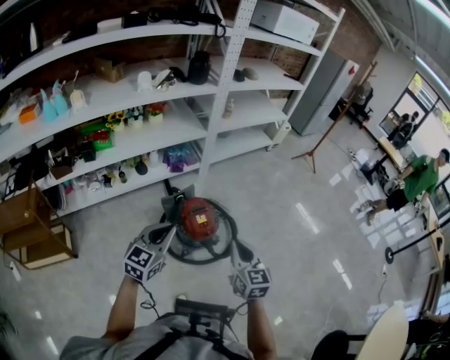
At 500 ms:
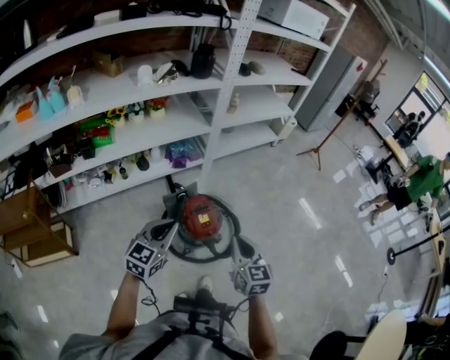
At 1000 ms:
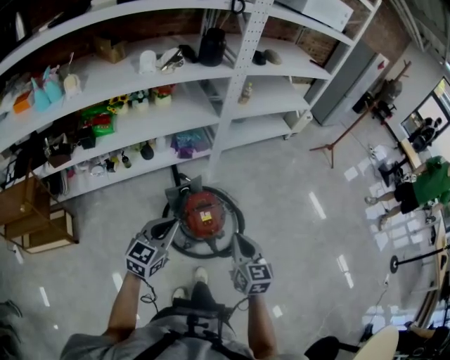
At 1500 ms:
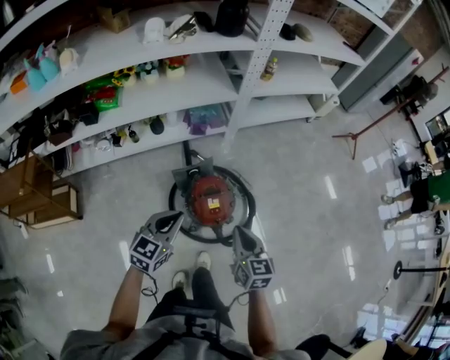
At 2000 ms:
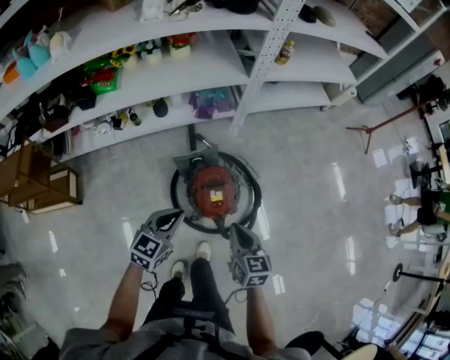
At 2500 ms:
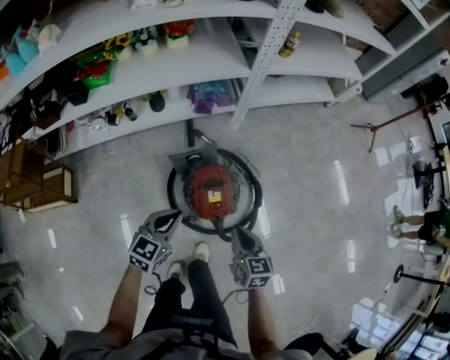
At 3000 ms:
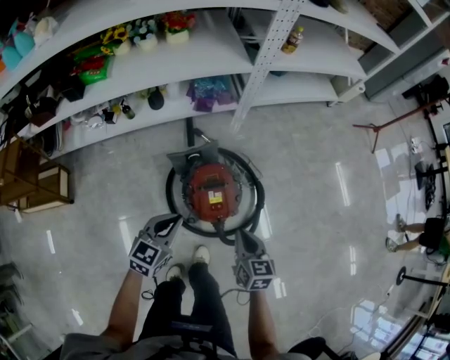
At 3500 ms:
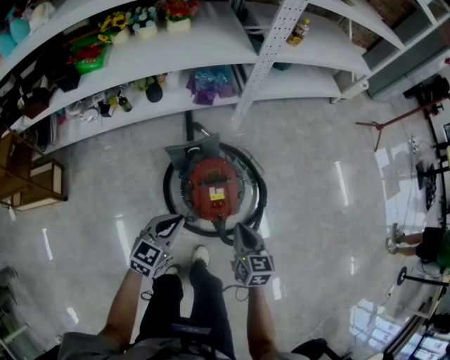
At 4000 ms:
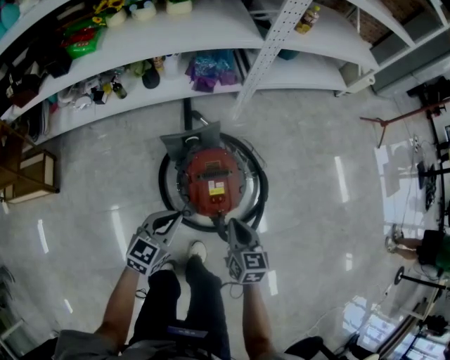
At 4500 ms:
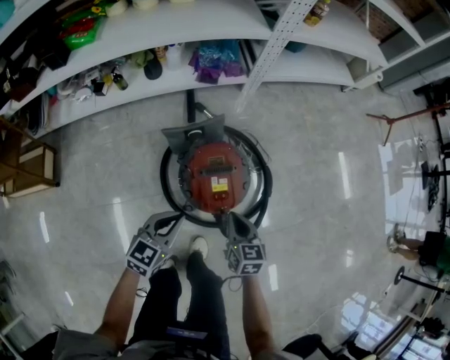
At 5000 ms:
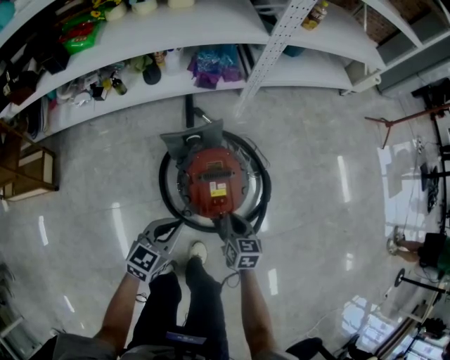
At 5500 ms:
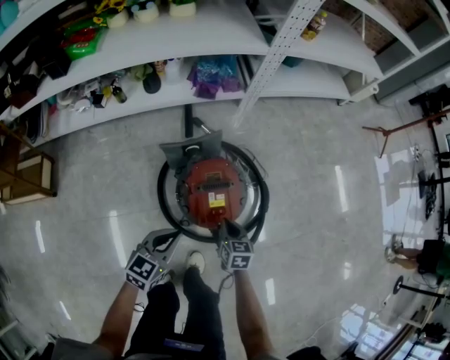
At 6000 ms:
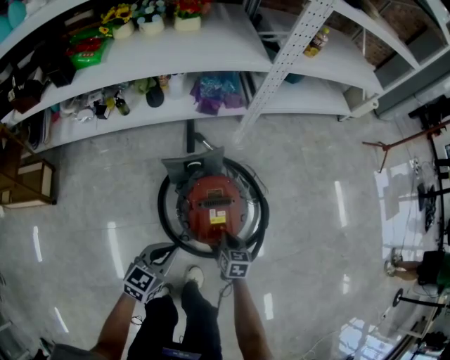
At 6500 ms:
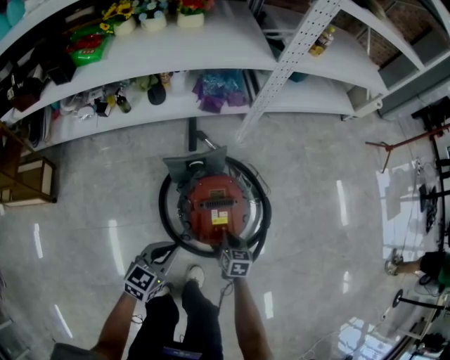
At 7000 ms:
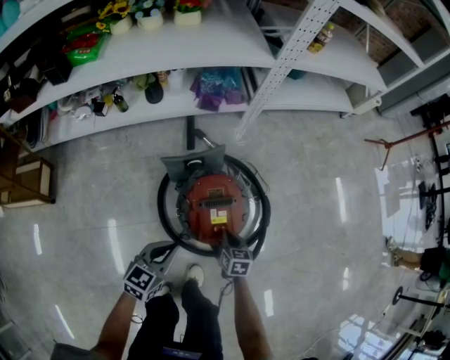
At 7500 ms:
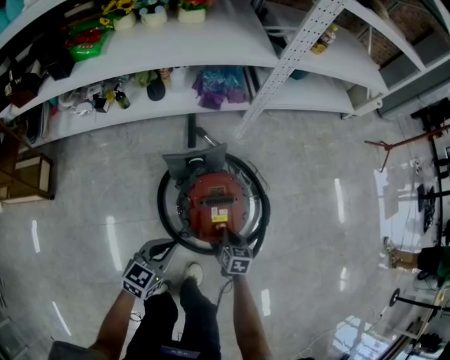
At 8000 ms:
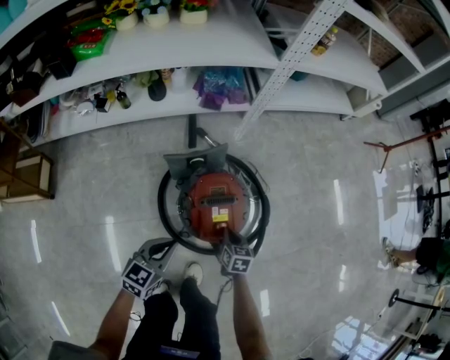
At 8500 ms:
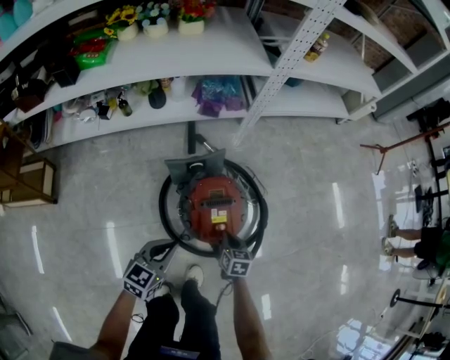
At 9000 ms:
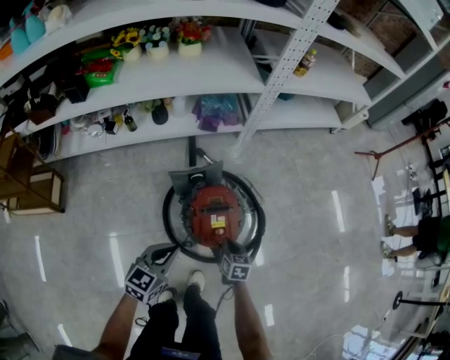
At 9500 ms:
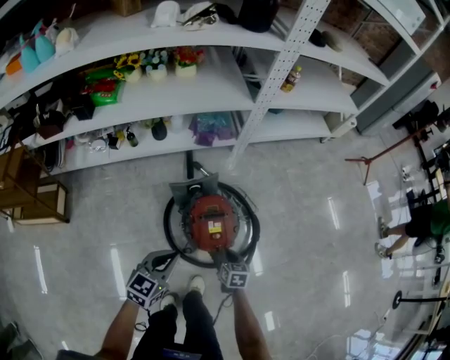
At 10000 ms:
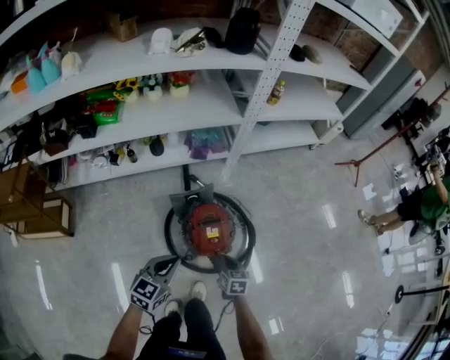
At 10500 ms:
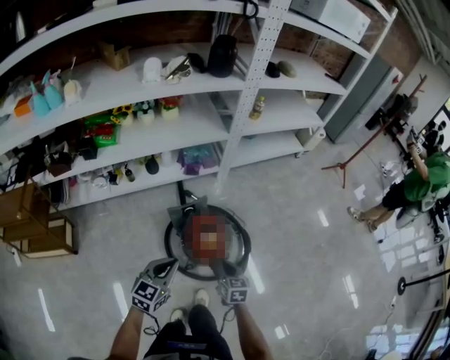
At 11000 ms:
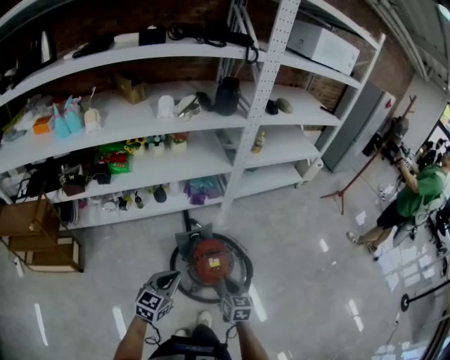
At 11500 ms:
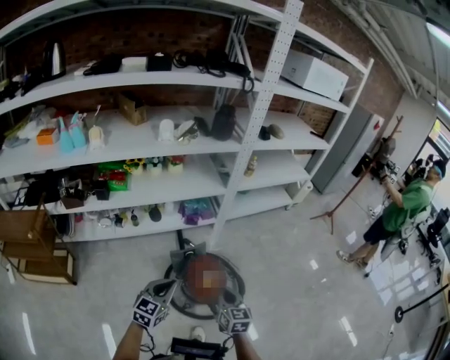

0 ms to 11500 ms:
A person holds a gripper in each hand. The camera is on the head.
0 ms to 2000 ms: The grippers both shift forward and downward by about 25 cm. The right gripper changes its angle by some 20 degrees.
2000 ms to 4000 ms: The grippers both shift downward by about 25 cm.
4000 ms to 6000 ms: The right gripper travels downward by about 15 cm.
6000 ms to 7500 ms: The grippers stay close to where they were, moving slightly.
7500 ms to 9500 ms: The two grippers go approximately 15 cm upward.
9500 ms to 11500 ms: The left gripper heads upward, covering approximately 20 cm; the right gripper moves upward, roughly 40 cm, and swivels roughly 30 degrees.

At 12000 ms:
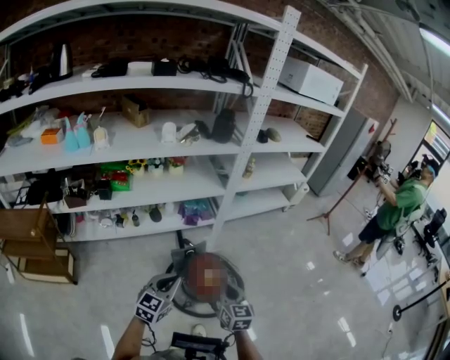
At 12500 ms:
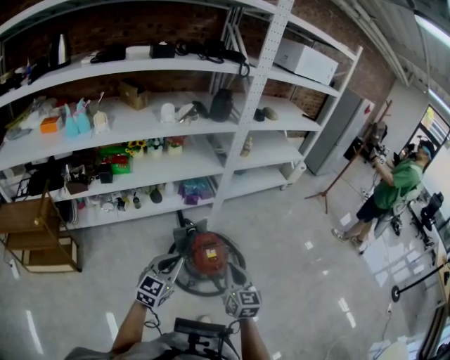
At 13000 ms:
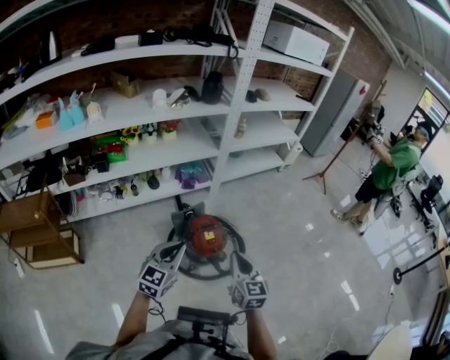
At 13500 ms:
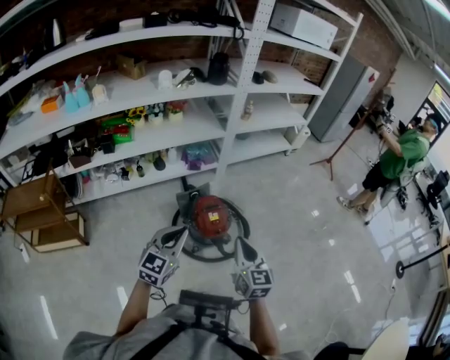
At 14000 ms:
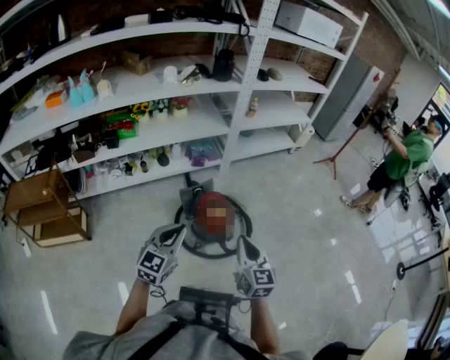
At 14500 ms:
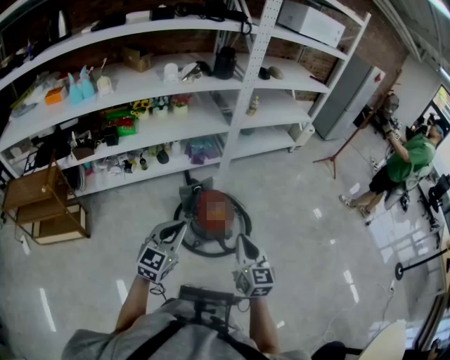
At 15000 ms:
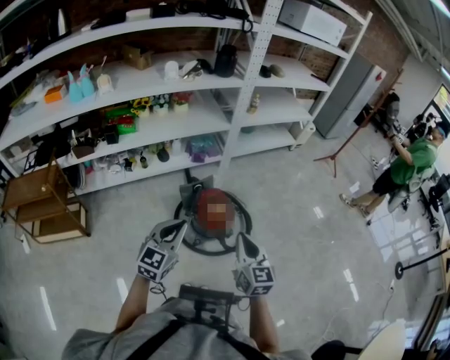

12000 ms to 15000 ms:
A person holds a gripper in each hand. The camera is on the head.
12000 ms to 13500 ms: The left gripper shifts roughly 10 cm backward. The right gripper moves backward and to the right, some 15 cm.
13500 ms to 15000 ms: The grippers make only small movements.

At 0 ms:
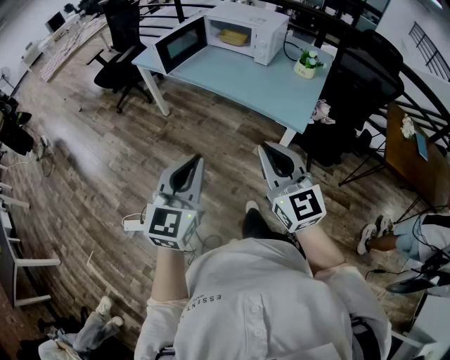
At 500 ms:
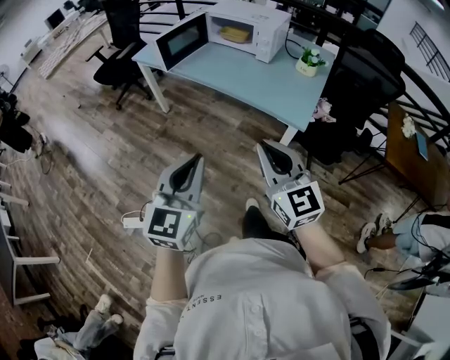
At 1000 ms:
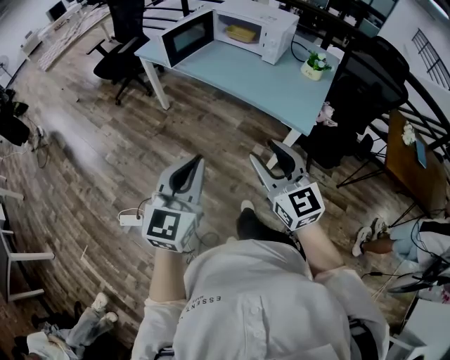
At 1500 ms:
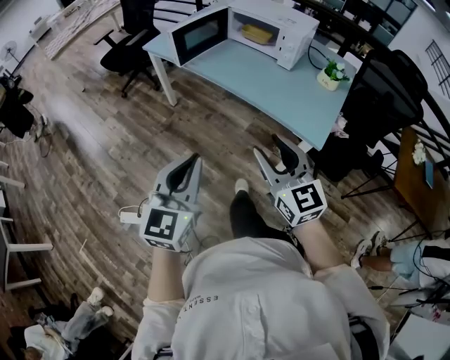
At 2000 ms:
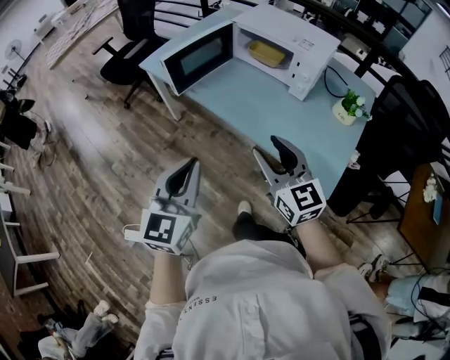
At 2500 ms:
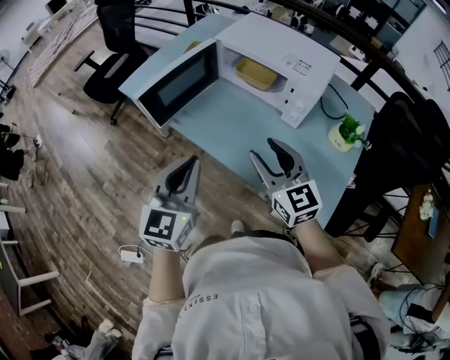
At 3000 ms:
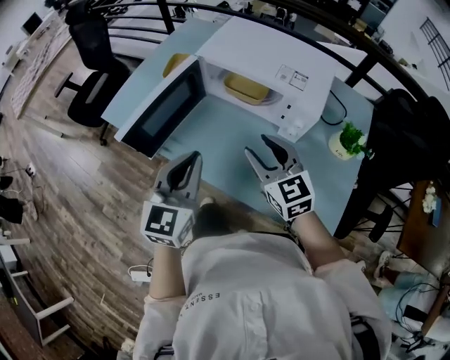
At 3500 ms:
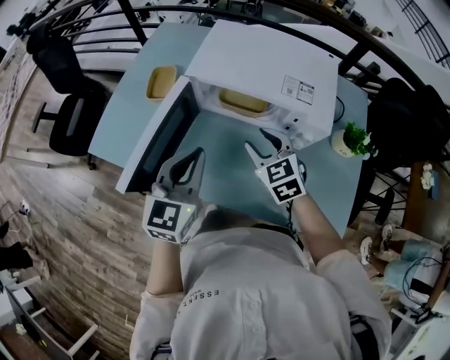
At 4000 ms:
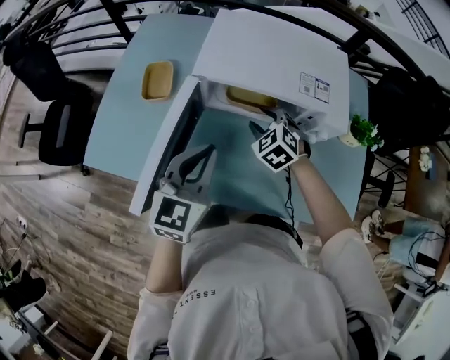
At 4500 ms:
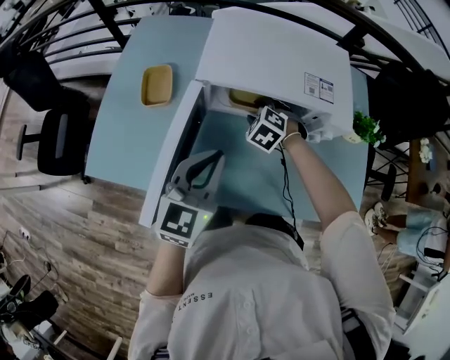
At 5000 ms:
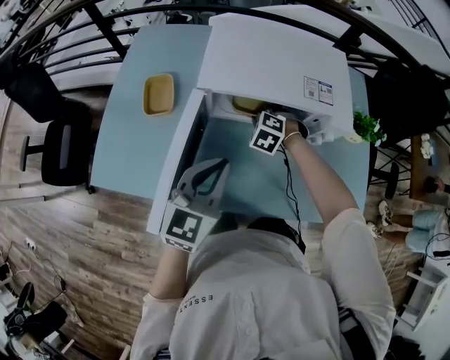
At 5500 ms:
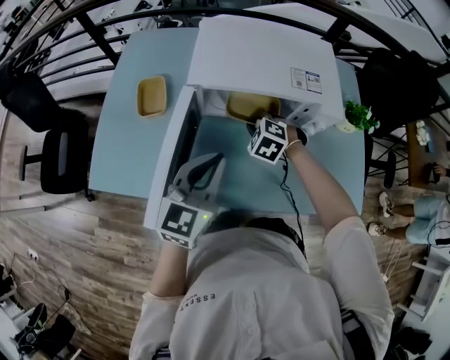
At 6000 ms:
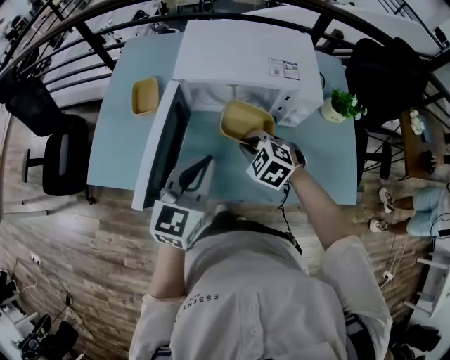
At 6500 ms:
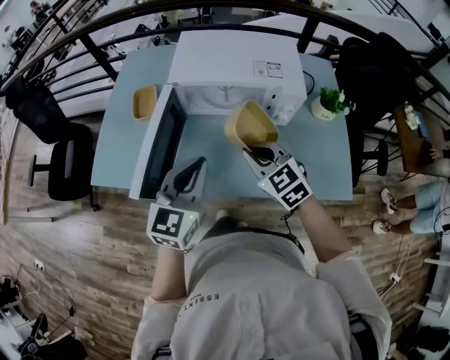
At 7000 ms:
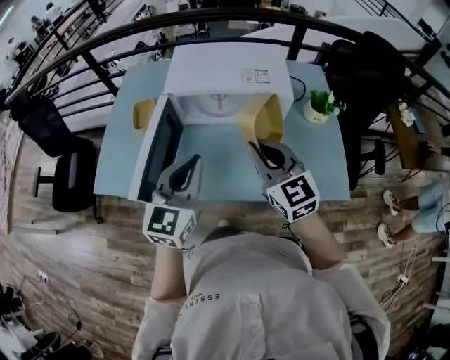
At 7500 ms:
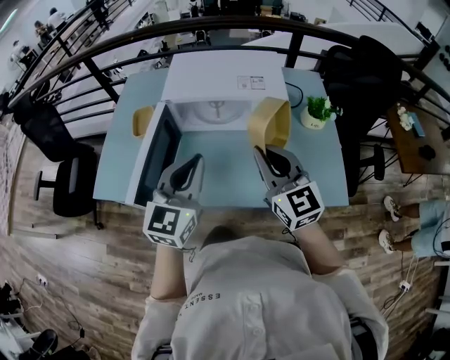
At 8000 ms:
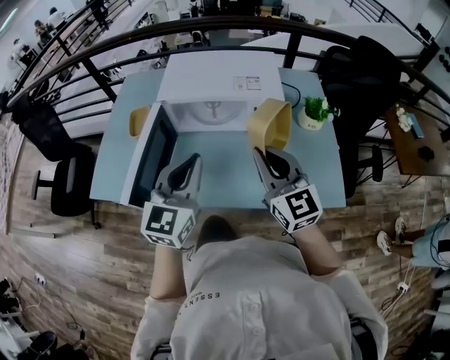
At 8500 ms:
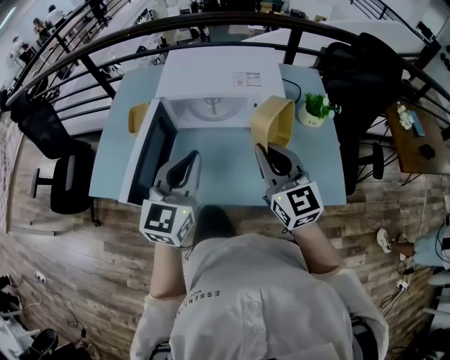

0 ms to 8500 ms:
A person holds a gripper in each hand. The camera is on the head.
0 ms to 2000 ms: The grippers both shift forward by about 30 cm. The right gripper opens.
2000 ms to 4000 ms: The pair of grippers is taken approximately 50 cm. The left gripper swivels some 30 degrees. The right gripper tilts its fingers some 40 degrees downward.
4000 ms to 6500 ms: The right gripper heads backward and upward, covering some 20 cm, swivels approximately 30 degrees, and closes up. The left gripper heads backward, covering roughly 10 cm.
6500 ms to 8500 ms: The right gripper travels upward and to the right by some 15 cm, and changes its angle by approximately 30 degrees; the left gripper changes place by about 5 cm.

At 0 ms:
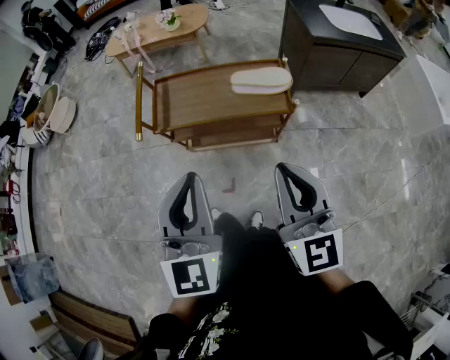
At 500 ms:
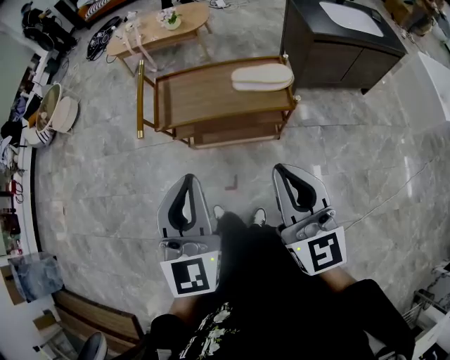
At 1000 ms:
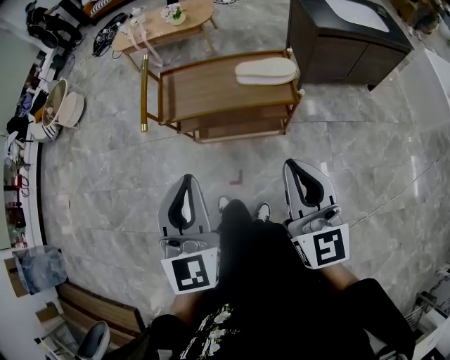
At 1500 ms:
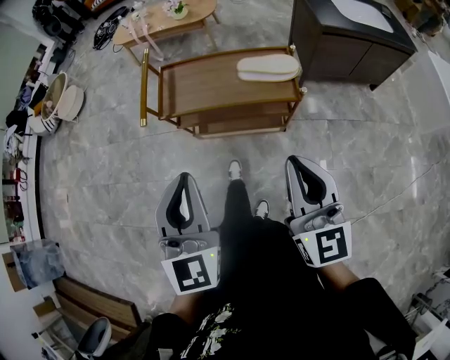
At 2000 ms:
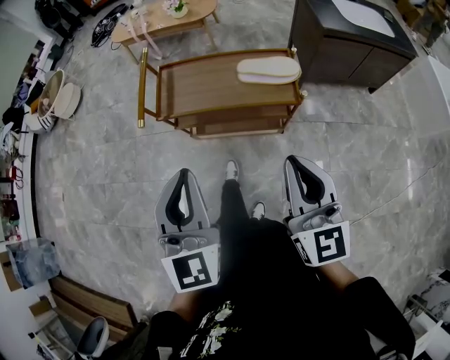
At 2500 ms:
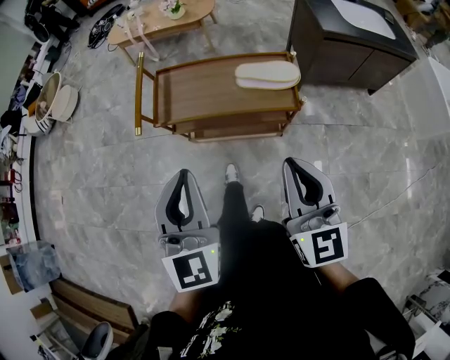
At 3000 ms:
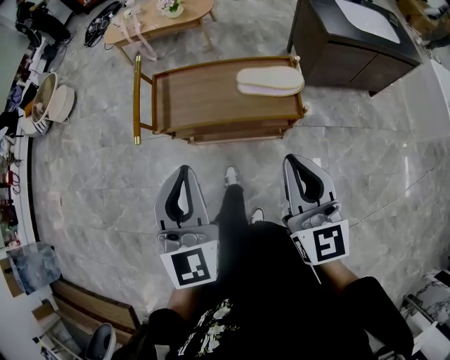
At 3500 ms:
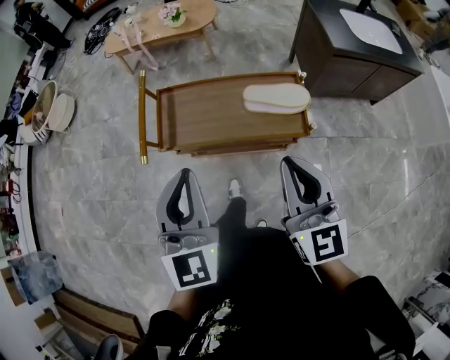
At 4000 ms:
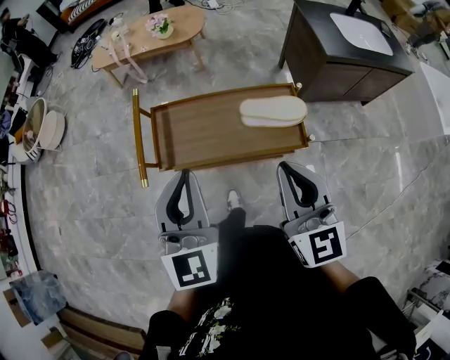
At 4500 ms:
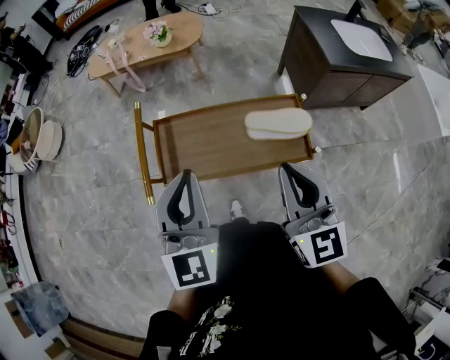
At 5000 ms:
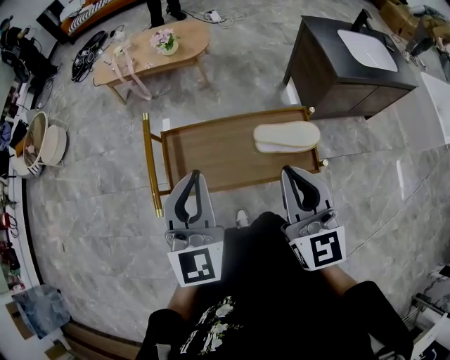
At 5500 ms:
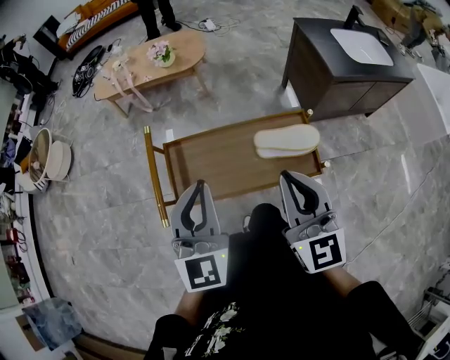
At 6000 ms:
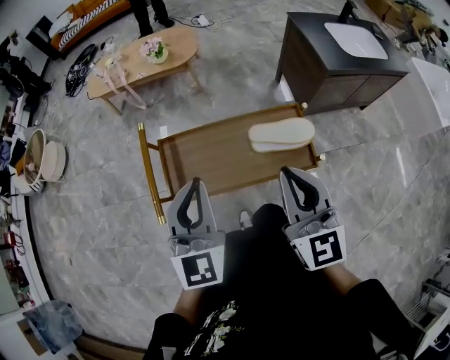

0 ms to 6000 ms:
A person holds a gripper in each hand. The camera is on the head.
0 ms to 2000 ms: The grippers stay close to where they were, moving slightly.
2000 ms to 4000 ms: Both grippers travel together forward, approximately 20 cm.
4000 ms to 6000 ms: Both grippers travel together forward, roughly 10 cm.
